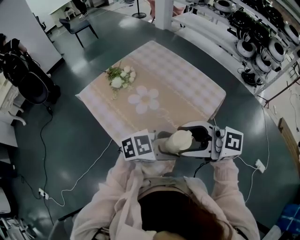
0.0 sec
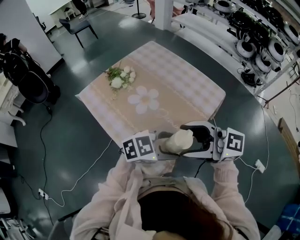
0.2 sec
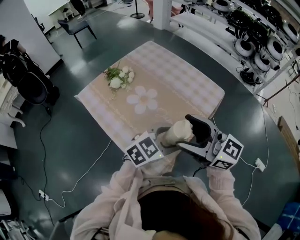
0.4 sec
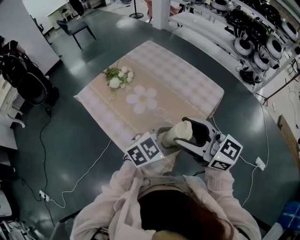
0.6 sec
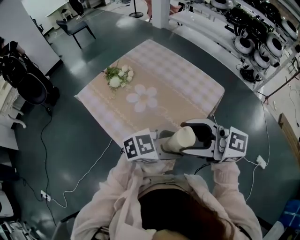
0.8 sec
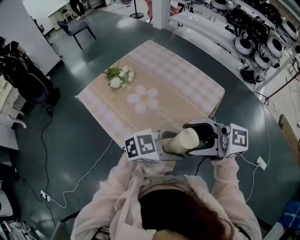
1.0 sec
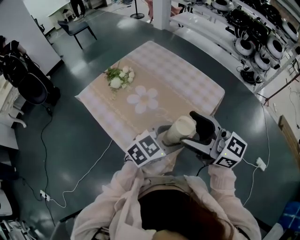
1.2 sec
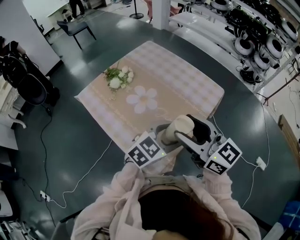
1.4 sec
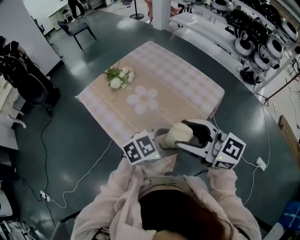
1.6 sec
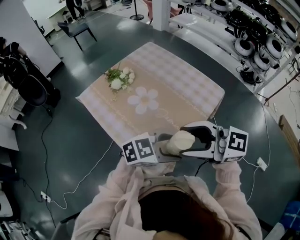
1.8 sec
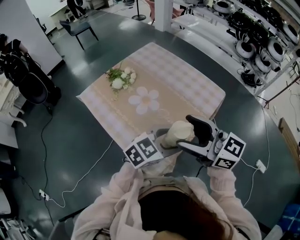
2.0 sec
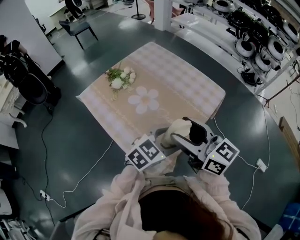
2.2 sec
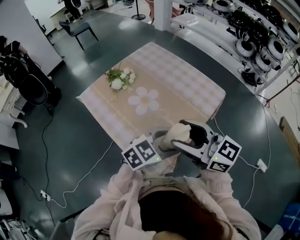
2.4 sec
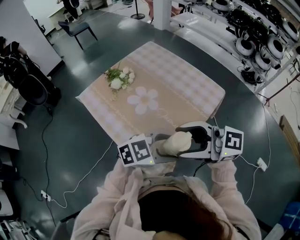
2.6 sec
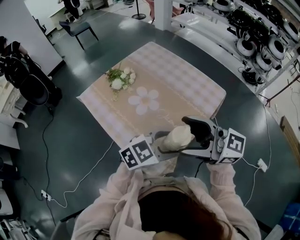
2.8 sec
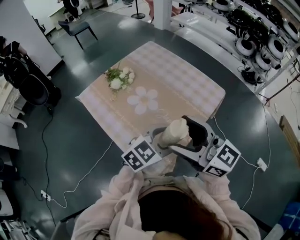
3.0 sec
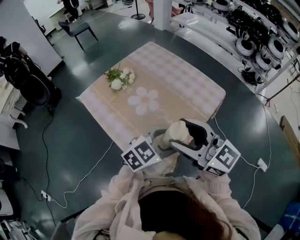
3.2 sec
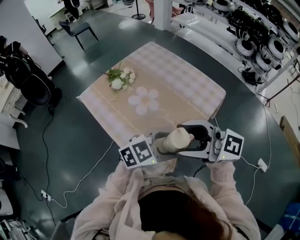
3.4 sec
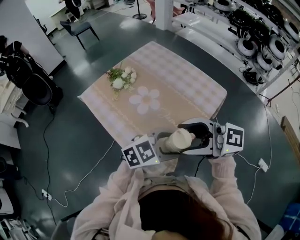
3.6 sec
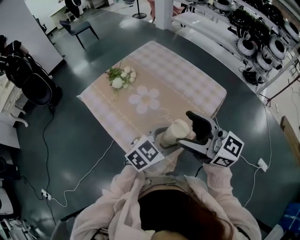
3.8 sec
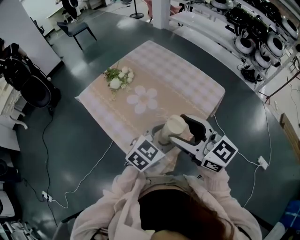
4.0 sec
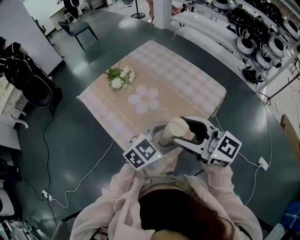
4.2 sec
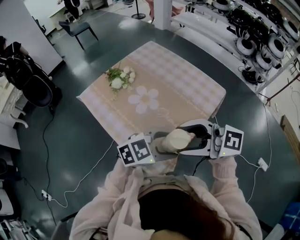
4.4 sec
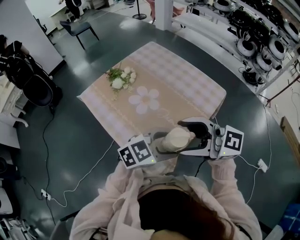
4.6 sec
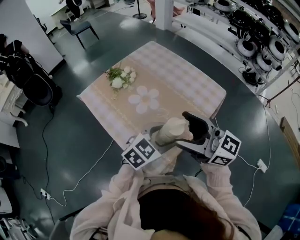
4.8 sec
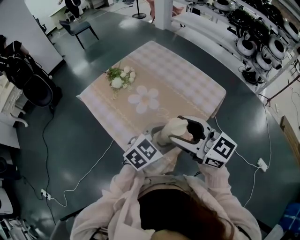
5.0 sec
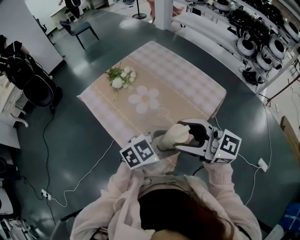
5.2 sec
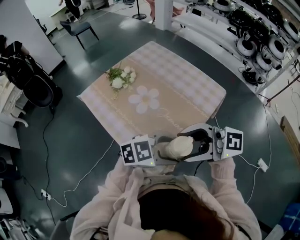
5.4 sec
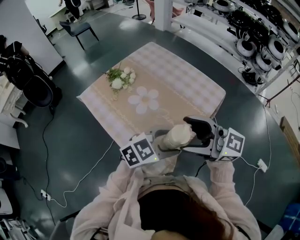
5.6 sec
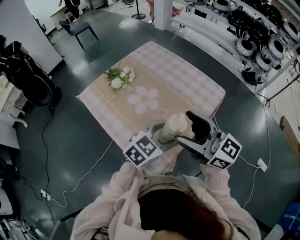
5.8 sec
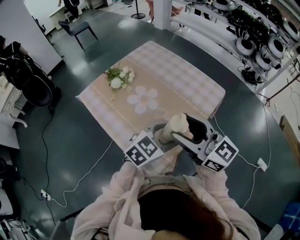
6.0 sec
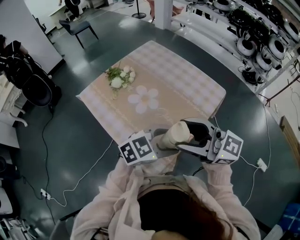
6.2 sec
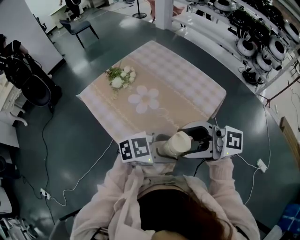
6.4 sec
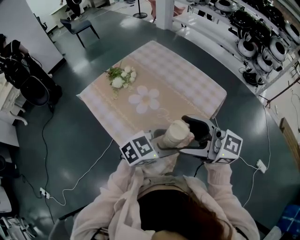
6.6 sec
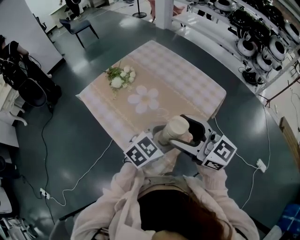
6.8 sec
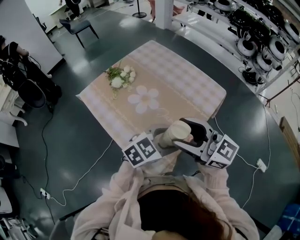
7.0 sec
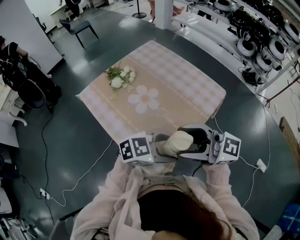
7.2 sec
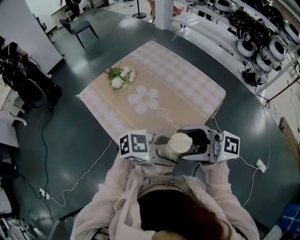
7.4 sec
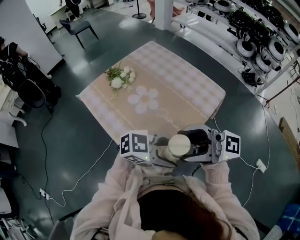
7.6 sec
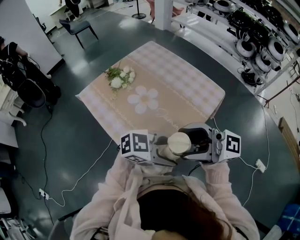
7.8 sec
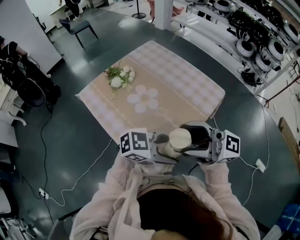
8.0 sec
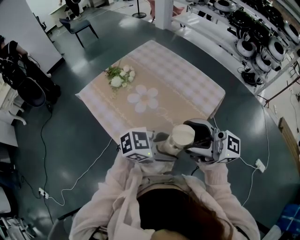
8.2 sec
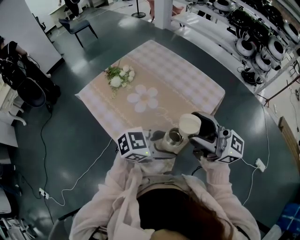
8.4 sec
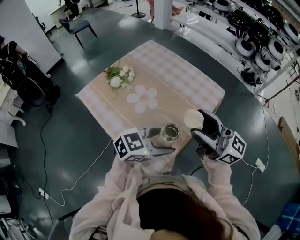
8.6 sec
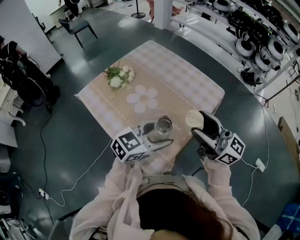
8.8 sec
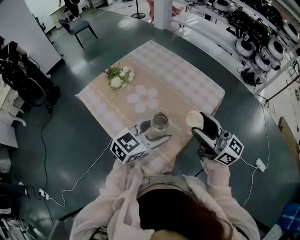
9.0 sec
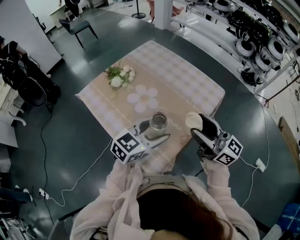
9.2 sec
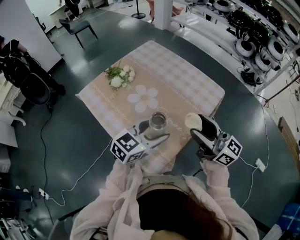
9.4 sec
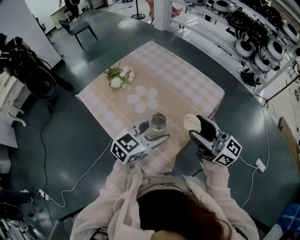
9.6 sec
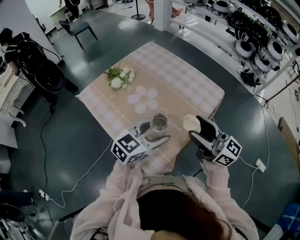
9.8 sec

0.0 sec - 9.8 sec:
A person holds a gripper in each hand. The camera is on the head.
0.0 sec - 1.4 sec: The left gripper moves about 5 cm, and turns by some 30 degrees. Meanwhile the right gripper moves some 5 cm, and turns by roughly 40 degrees.
1.4 sec - 2.8 sec: The right gripper rotates some 30 degrees.
7.0 sec - 8.4 sec: The right gripper travels upward by approximately 5 cm, and swivels roughly 20 degrees; the left gripper rotates some 20 degrees.
8.4 sec - 9.8 sec: The right gripper moves downward, some 5 cm, while the left gripper ends up roughly 10 cm from where it was, and rotates roughly 30 degrees.

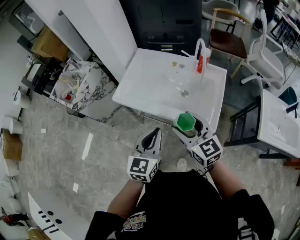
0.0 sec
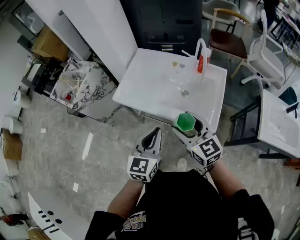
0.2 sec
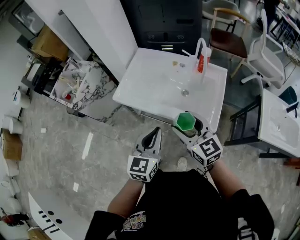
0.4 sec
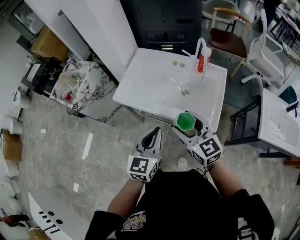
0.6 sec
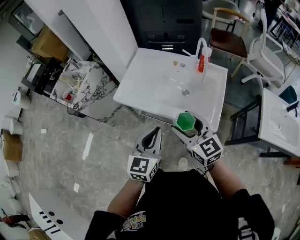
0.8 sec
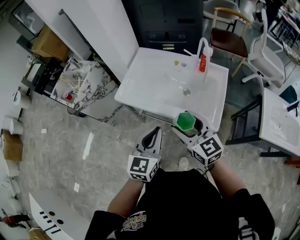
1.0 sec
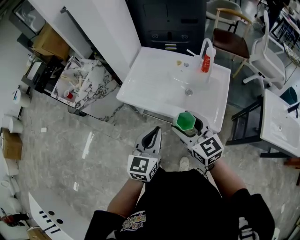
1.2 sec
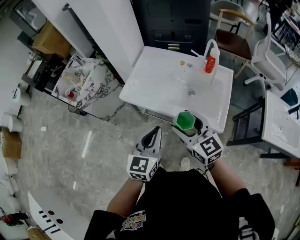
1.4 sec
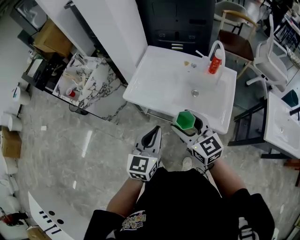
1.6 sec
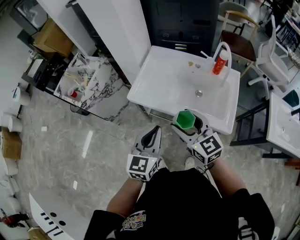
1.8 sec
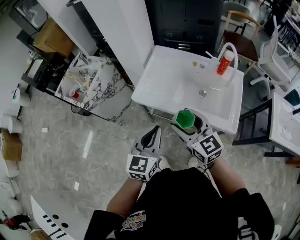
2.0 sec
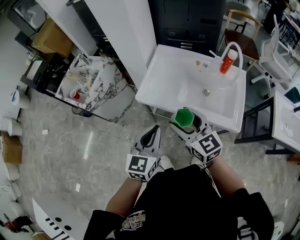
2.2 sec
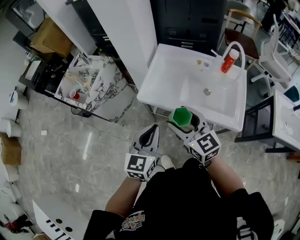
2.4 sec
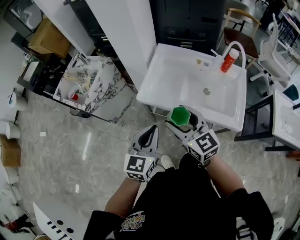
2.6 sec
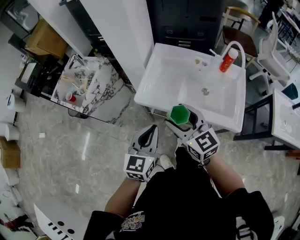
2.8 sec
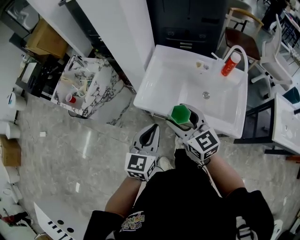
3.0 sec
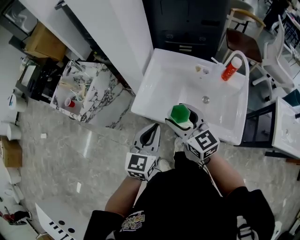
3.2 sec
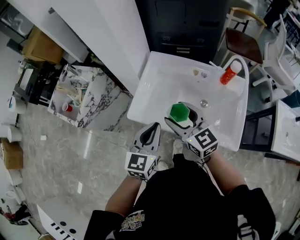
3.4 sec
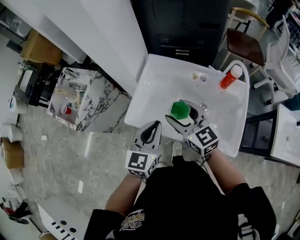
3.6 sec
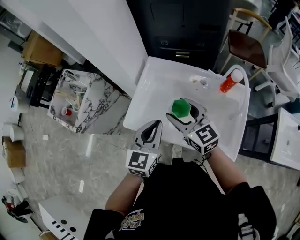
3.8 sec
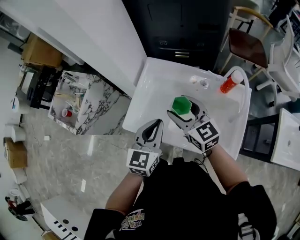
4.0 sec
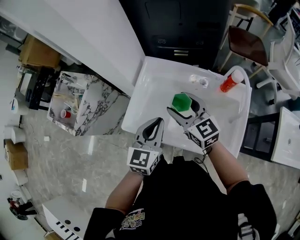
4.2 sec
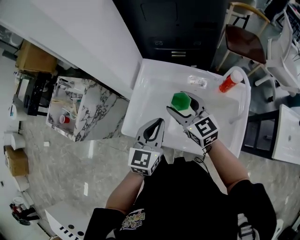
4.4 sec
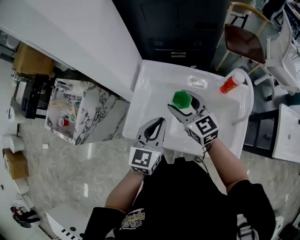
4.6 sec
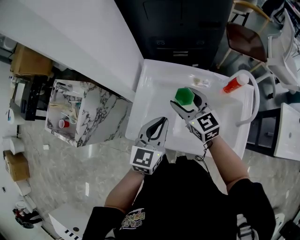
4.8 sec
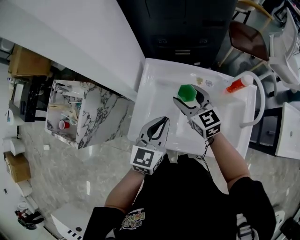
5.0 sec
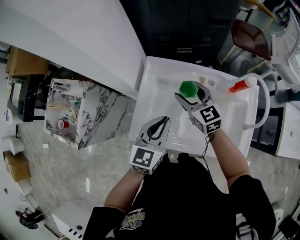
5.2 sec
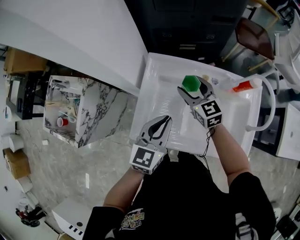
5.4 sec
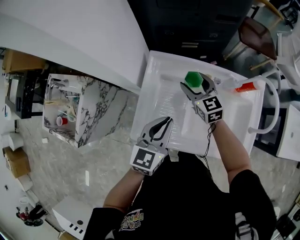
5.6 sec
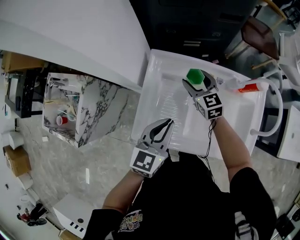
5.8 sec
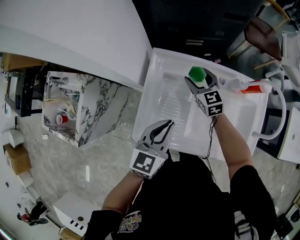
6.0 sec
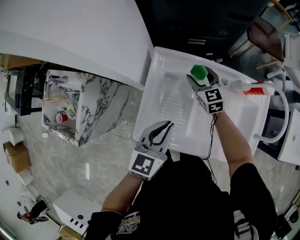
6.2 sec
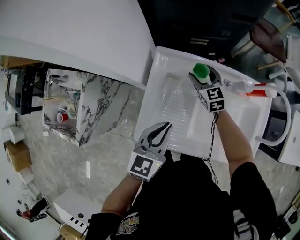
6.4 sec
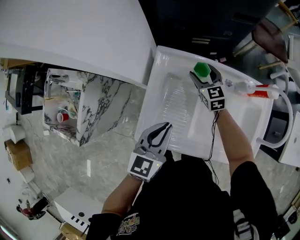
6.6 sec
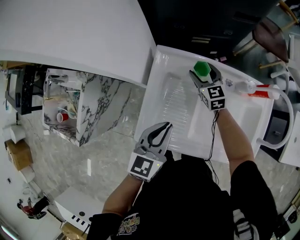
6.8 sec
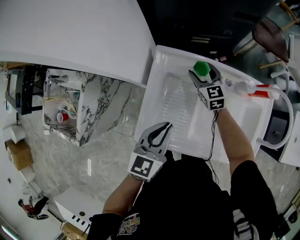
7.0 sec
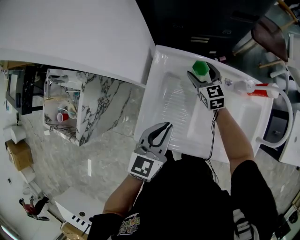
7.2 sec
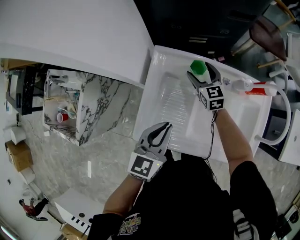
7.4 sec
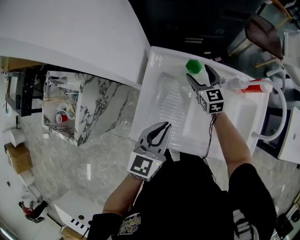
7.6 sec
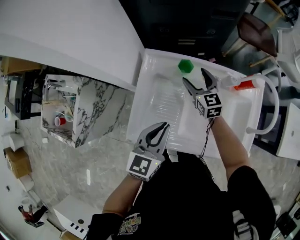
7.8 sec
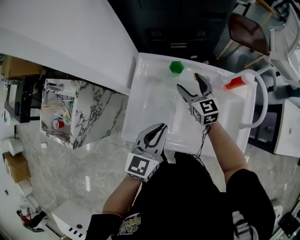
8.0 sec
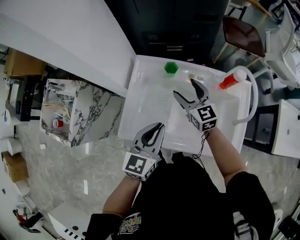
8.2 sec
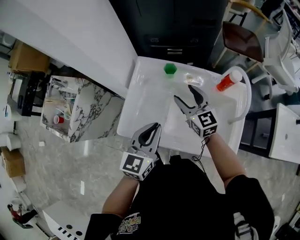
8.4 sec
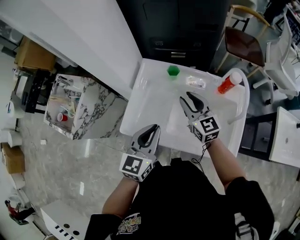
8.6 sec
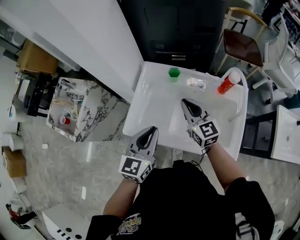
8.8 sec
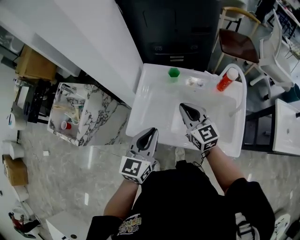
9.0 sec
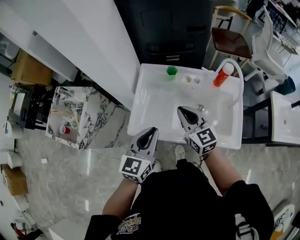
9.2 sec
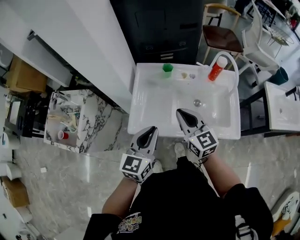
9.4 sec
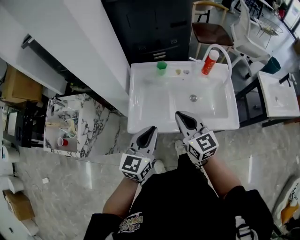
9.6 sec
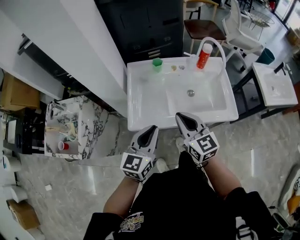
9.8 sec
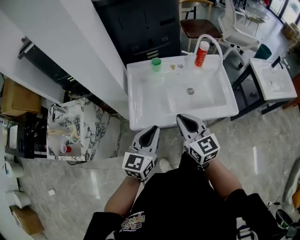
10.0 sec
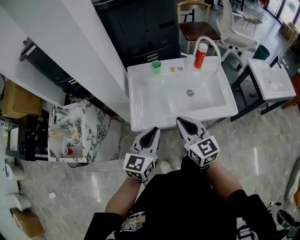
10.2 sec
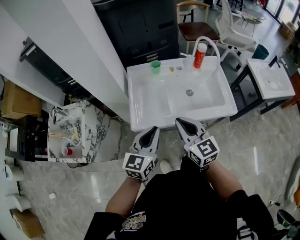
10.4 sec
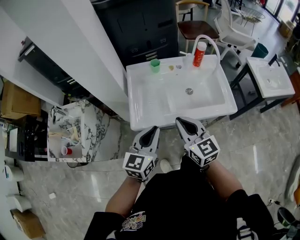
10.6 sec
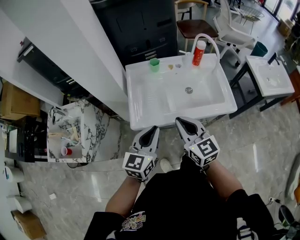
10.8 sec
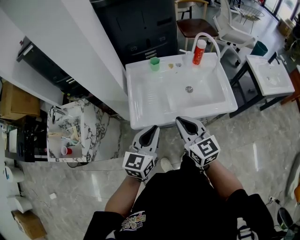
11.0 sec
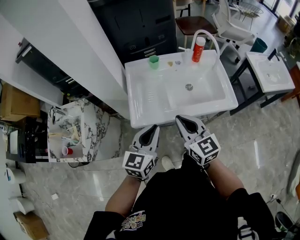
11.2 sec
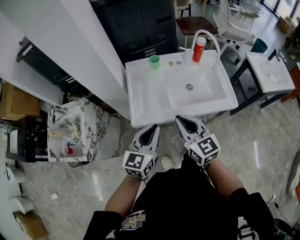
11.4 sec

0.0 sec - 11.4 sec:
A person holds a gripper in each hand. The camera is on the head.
0.0 sec - 1.4 sec: The grippers both shift to the left by roughly 5 cm.
1.4 sec - 2.8 sec: Both grippers travel together to the left and forward, approximately 15 cm.
2.8 sec - 4.2 sec: Both grippers move forward and to the right, roughly 25 cm.
4.2 sec - 5.6 sec: The left gripper shifts some 5 cm forward. Meanwhile the right gripper goes some 20 cm forward and downward.
5.6 sec - 7.2 sec: The right gripper is displaced downward and forward by roughly 10 cm.
7.2 sec - 8.6 sec: The right gripper is displaced backward and upward by roughly 25 cm, and closes its fingers. The left gripper moves backward, upward and to the right, some 10 cm.
8.6 sec - 10.0 sec: The right gripper travels backward by about 25 cm; the left gripper shifts approximately 15 cm backward and to the left, and changes its angle by some 20 degrees.
10.0 sec - 11.4 sec: The grippers stay close to where they were, moving slightly.

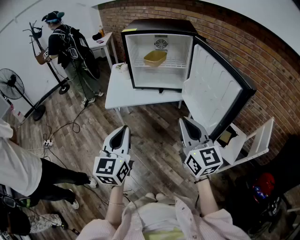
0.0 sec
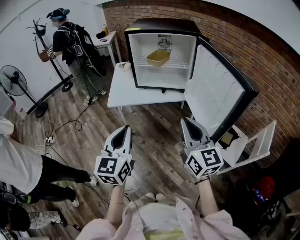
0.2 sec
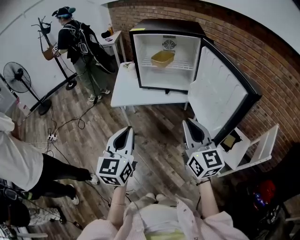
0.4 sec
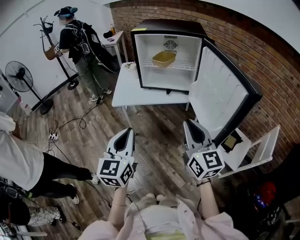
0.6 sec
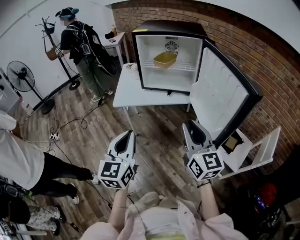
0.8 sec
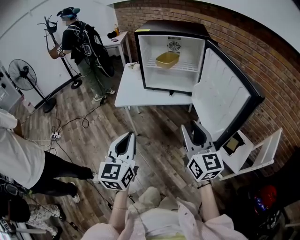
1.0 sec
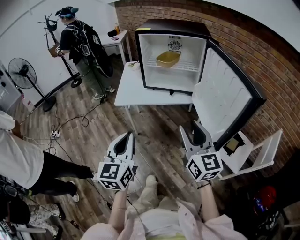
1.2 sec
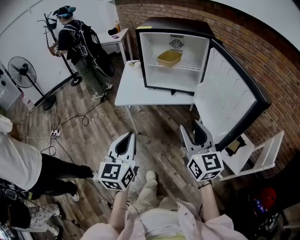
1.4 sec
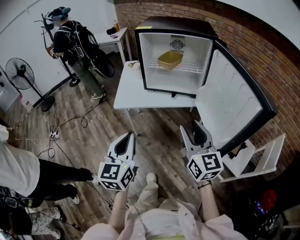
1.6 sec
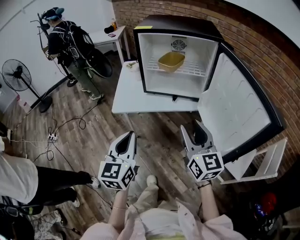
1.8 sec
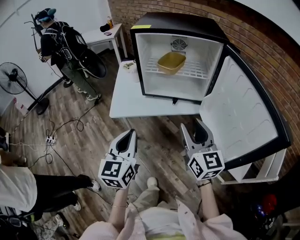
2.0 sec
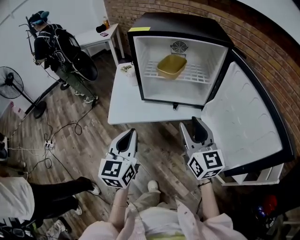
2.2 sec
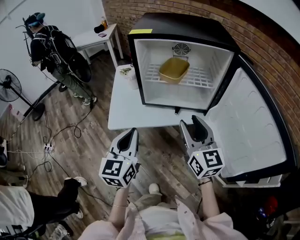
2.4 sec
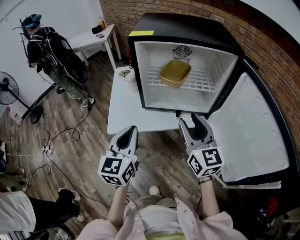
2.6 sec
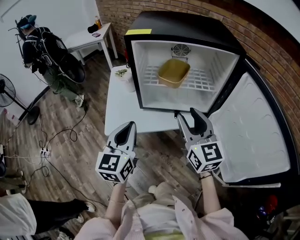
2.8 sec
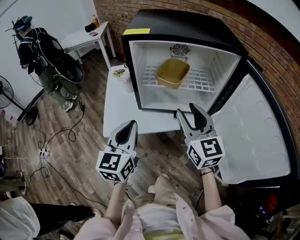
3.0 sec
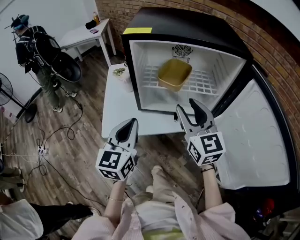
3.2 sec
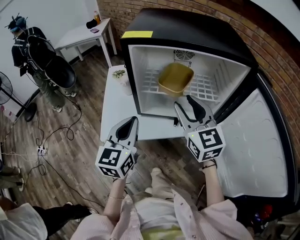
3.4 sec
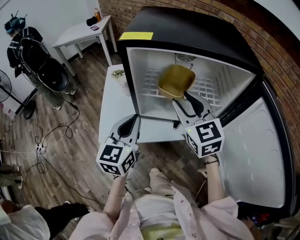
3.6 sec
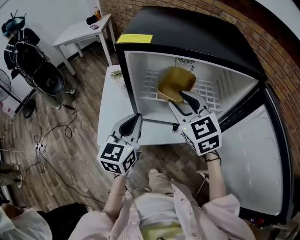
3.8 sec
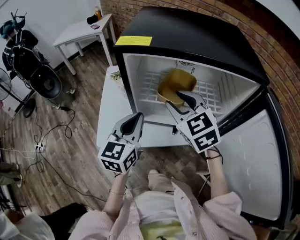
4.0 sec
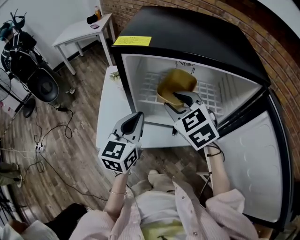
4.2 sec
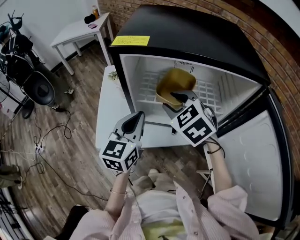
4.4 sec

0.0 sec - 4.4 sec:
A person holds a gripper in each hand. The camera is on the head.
0.0 sec - 1.4 sec: The right gripper opens its fingers.
1.4 sec - 3.0 sec: Both grippers move forward, about 30 cm.
3.0 sec - 4.4 sec: Both grippers move forward, about 15 cm. The right gripper tilts its fingers approximately 40 degrees downward.
